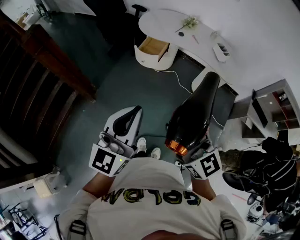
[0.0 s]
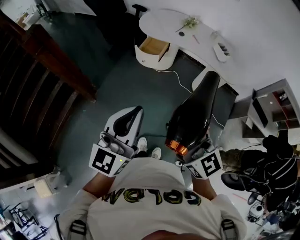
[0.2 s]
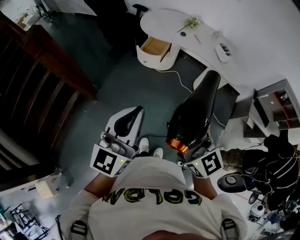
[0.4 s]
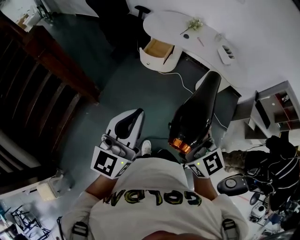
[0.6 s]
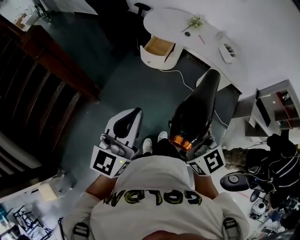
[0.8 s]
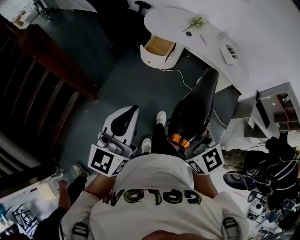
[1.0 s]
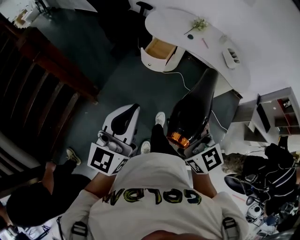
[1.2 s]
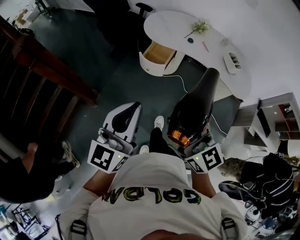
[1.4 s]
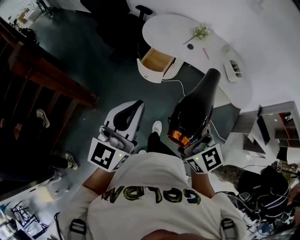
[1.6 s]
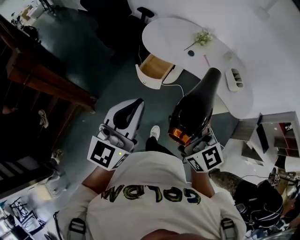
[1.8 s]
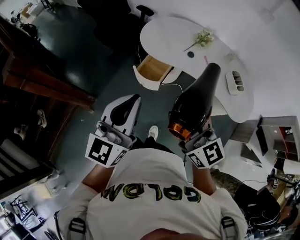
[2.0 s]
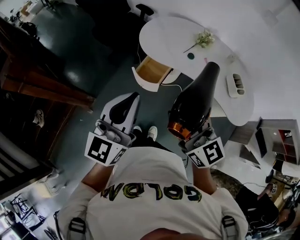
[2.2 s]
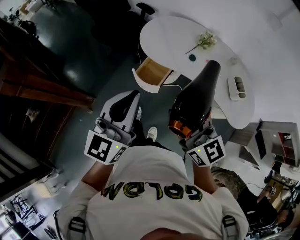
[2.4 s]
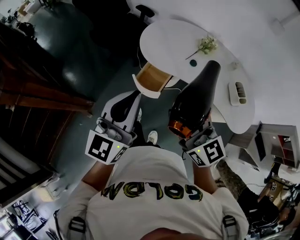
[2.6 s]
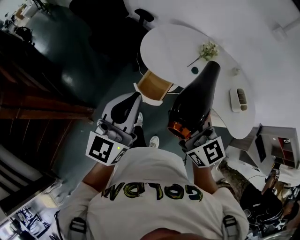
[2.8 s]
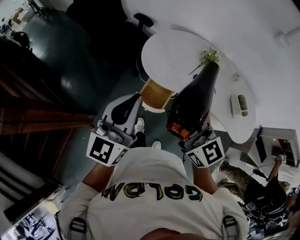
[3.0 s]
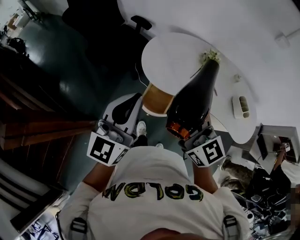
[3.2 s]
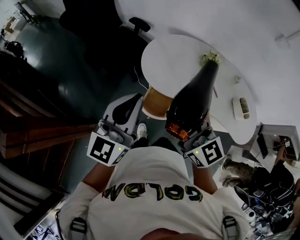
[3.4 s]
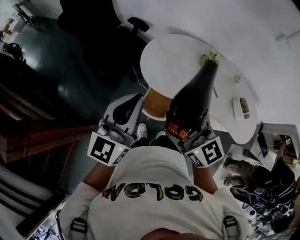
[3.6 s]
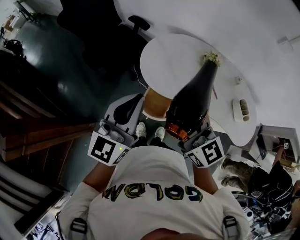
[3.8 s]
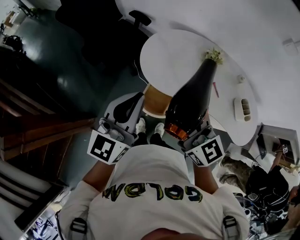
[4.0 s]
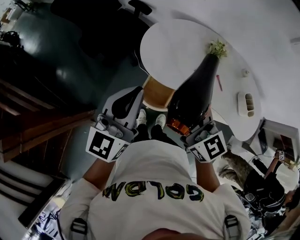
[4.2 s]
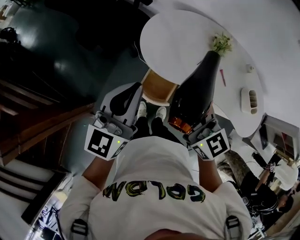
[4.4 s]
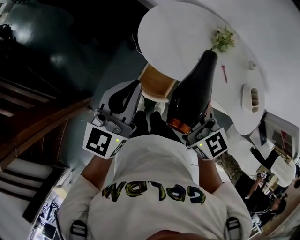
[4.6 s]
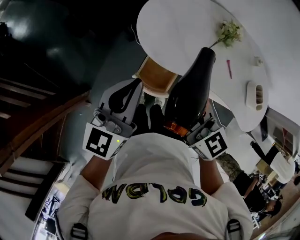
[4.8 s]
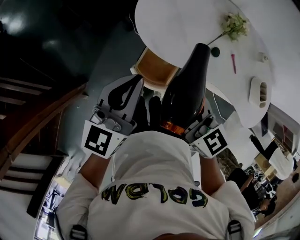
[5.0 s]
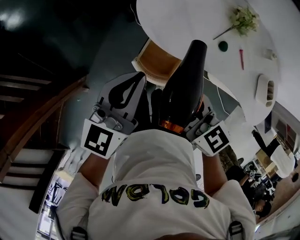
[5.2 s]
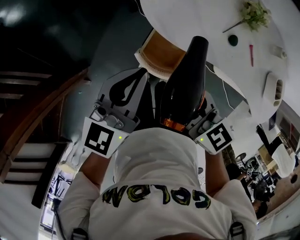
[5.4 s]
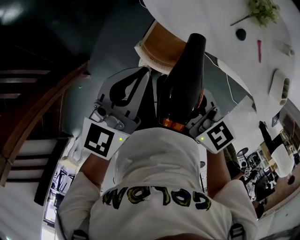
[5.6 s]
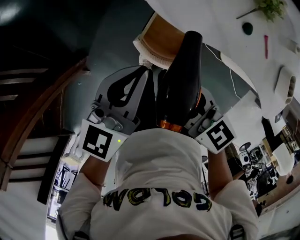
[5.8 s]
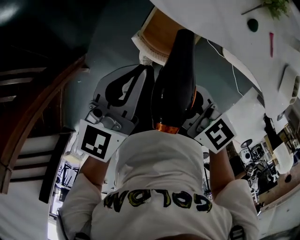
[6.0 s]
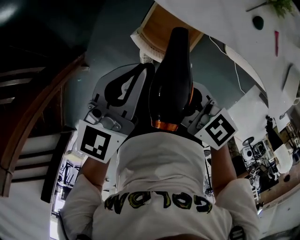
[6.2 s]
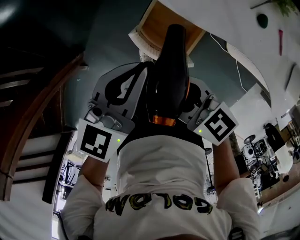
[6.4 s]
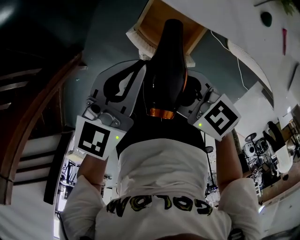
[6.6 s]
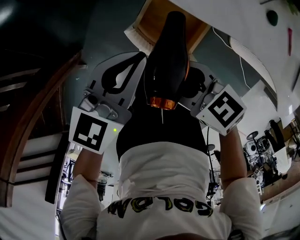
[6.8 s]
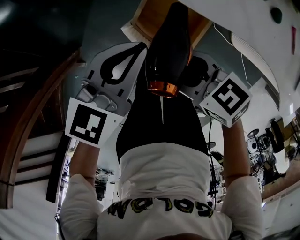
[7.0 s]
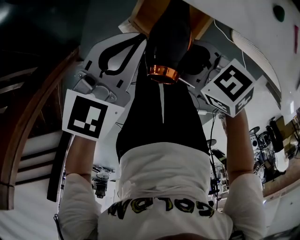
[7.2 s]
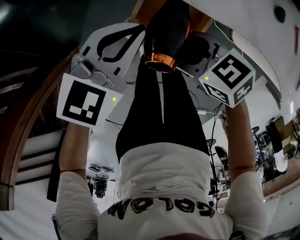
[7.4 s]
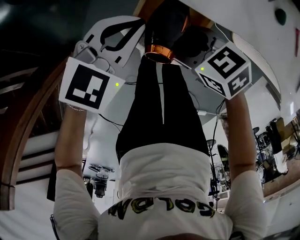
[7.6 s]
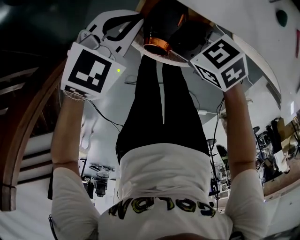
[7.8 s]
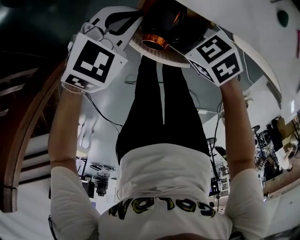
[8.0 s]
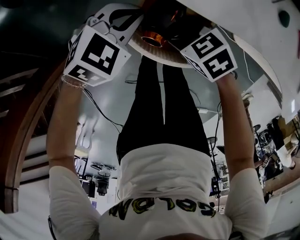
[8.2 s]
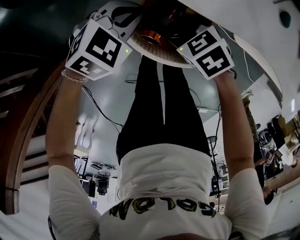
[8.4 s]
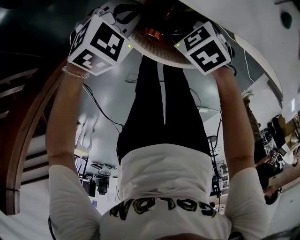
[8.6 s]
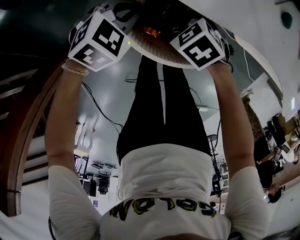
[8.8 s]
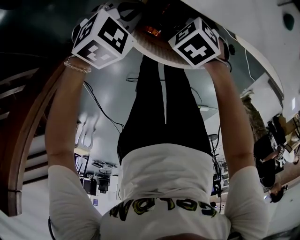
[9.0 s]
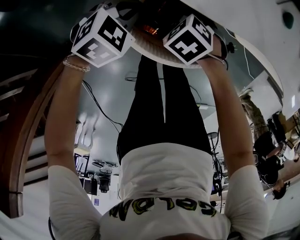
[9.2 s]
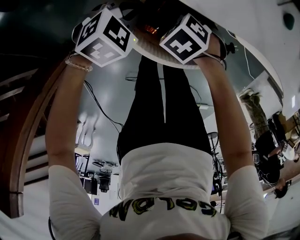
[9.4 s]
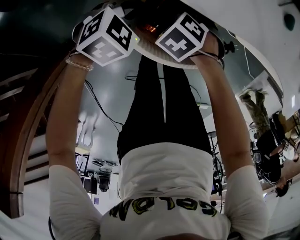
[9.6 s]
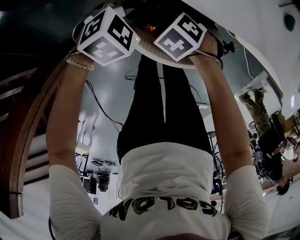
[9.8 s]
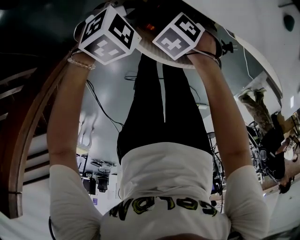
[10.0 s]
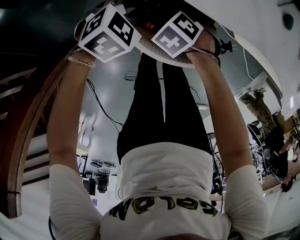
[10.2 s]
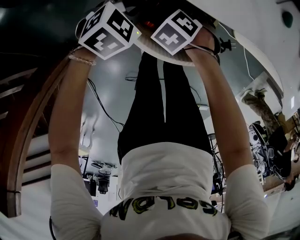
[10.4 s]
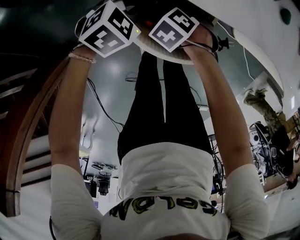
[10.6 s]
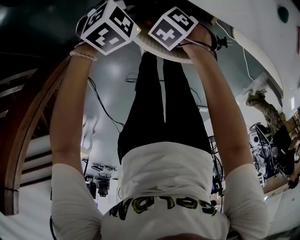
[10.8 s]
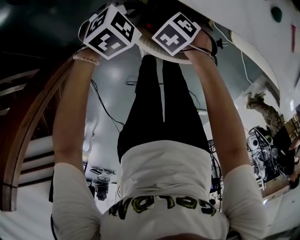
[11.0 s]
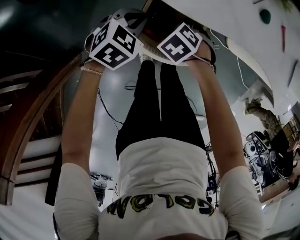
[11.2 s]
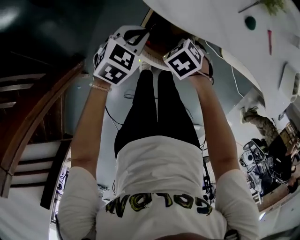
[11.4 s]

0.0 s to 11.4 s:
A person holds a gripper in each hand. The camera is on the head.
0.0 to 1.4 s: Both grippers travel together forward, roughly 15 cm.
1.4 to 2.8 s: Both grippers travel together forward, approximately 35 cm.
2.8 to 4.2 s: The two grippers go roughly 15 cm forward.
4.2 to 5.6 s: Both grippers travel together downward, approximately 25 cm. The right gripper changes its angle by approximately 30 degrees. The left gripper rotates approximately 20 degrees.
5.6 to 7.2 s: The grippers both shift downward by about 20 cm. The right gripper swivels roughly 20 degrees; the left gripper swivels about 30 degrees.
7.2 to 8.6 s: The grippers both shift downward by approximately 10 cm. The left gripper turns by approximately 30 degrees; the right gripper turns by approximately 30 degrees.
8.6 to 10.0 s: The right gripper is displaced downward by approximately 5 cm, and swivels approximately 20 degrees.
10.0 to 11.4 s: The two grippers go about 10 cm upward. The left gripper rotates some 20 degrees.

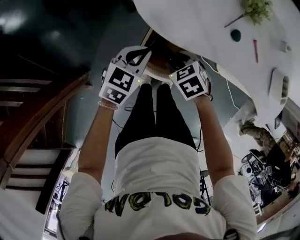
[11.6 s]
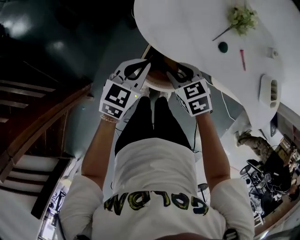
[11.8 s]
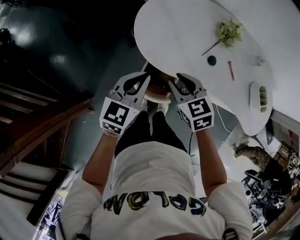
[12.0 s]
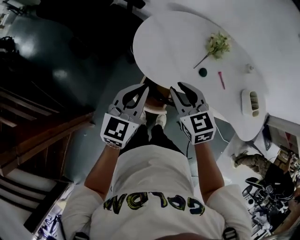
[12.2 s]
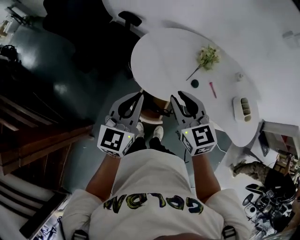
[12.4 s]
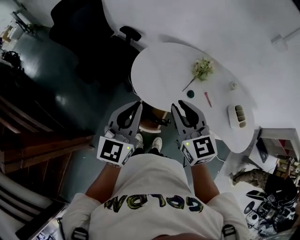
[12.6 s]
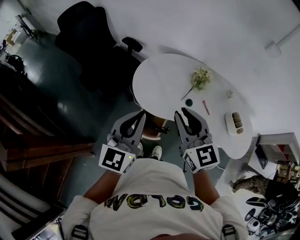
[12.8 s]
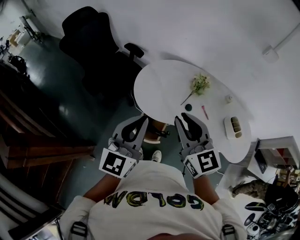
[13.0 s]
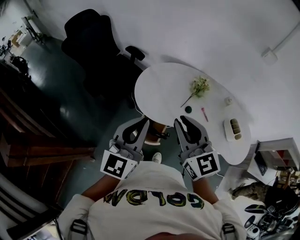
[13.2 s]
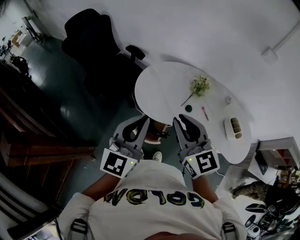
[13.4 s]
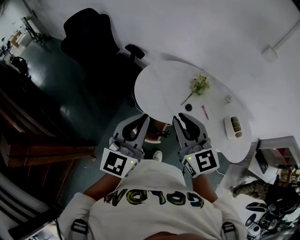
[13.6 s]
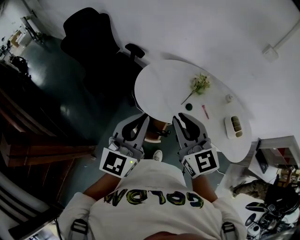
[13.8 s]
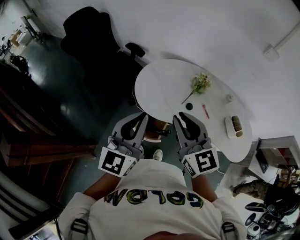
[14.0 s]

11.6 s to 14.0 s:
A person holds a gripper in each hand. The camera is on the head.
11.6 to 12.8 s: The two grippers go roughly 40 cm upward. The left gripper angles its fingers upward, by about 40 degrees. Meanwhile the right gripper tips its fingers upward by about 60 degrees, and closes up.
12.8 to 14.0 s: The grippers move only a little.

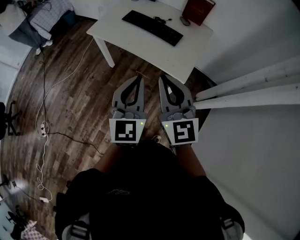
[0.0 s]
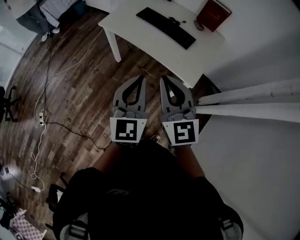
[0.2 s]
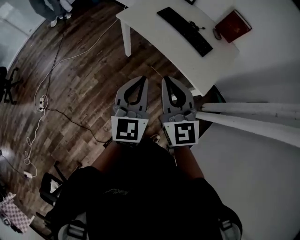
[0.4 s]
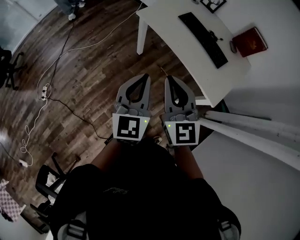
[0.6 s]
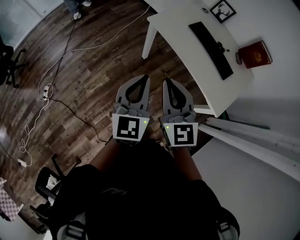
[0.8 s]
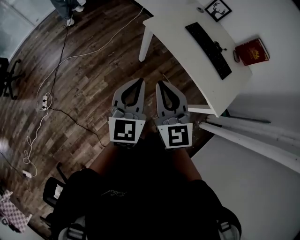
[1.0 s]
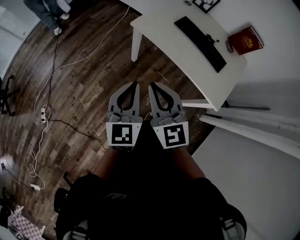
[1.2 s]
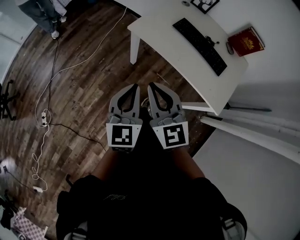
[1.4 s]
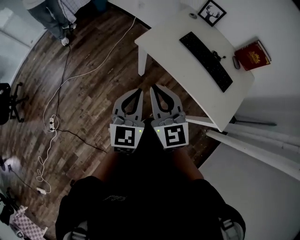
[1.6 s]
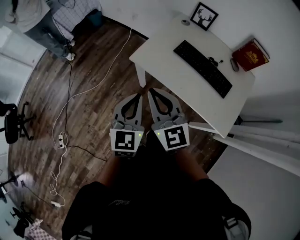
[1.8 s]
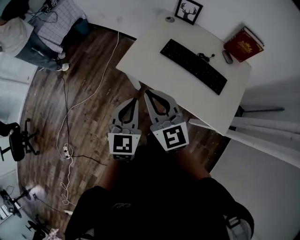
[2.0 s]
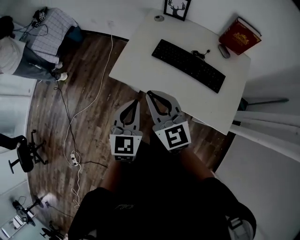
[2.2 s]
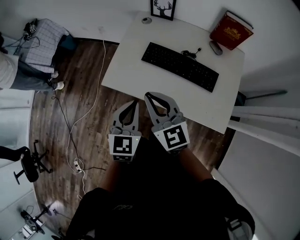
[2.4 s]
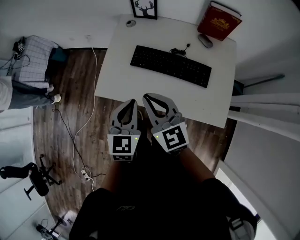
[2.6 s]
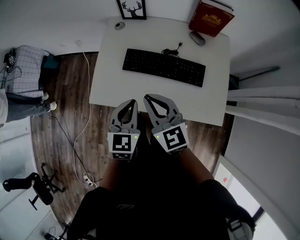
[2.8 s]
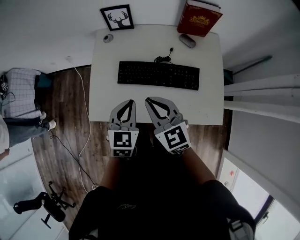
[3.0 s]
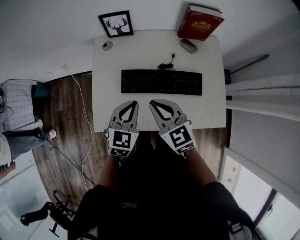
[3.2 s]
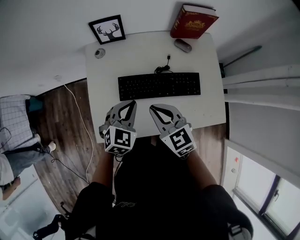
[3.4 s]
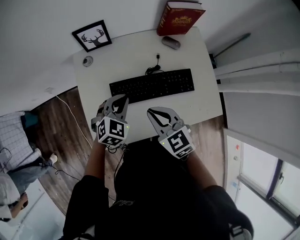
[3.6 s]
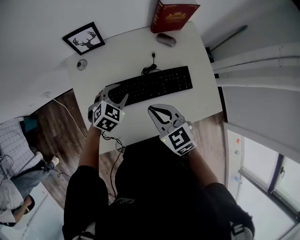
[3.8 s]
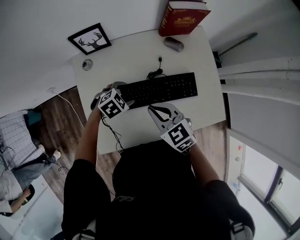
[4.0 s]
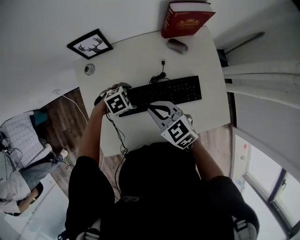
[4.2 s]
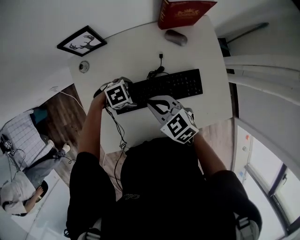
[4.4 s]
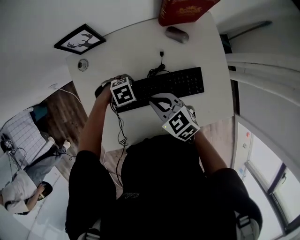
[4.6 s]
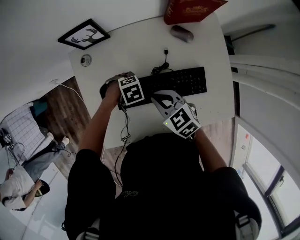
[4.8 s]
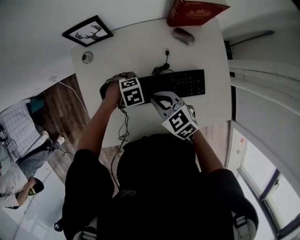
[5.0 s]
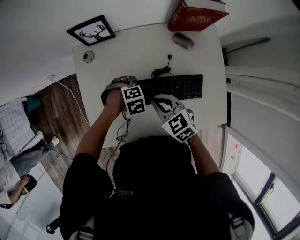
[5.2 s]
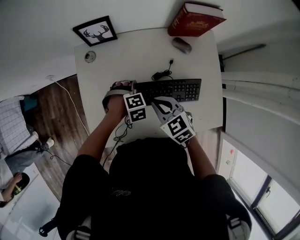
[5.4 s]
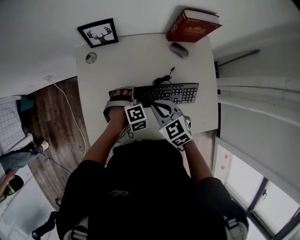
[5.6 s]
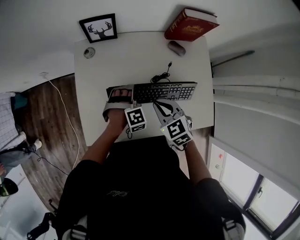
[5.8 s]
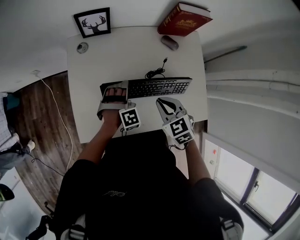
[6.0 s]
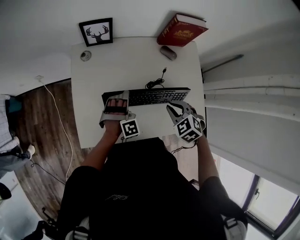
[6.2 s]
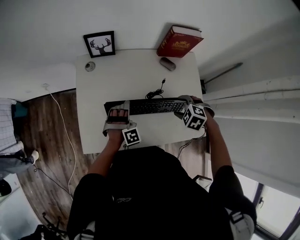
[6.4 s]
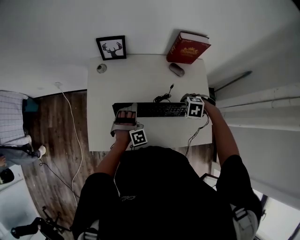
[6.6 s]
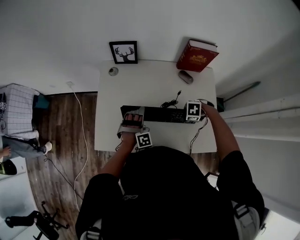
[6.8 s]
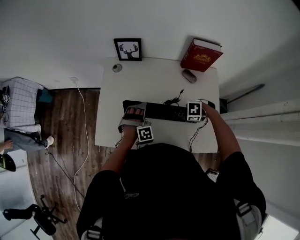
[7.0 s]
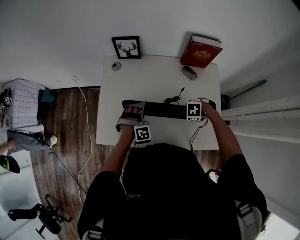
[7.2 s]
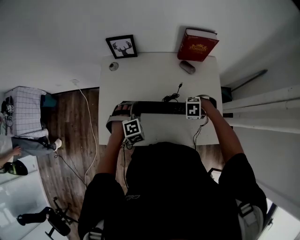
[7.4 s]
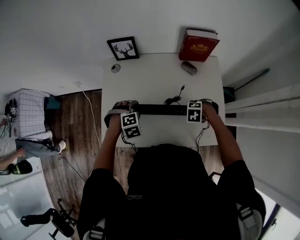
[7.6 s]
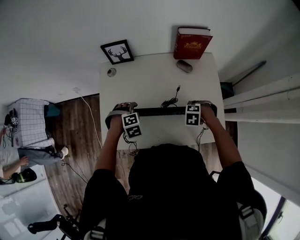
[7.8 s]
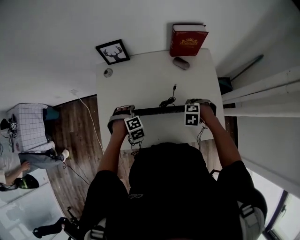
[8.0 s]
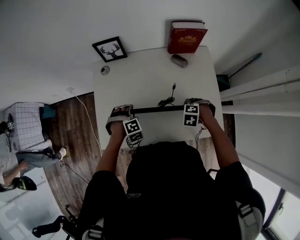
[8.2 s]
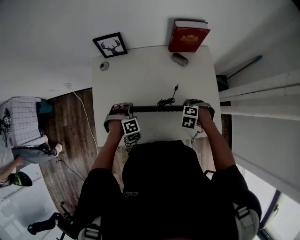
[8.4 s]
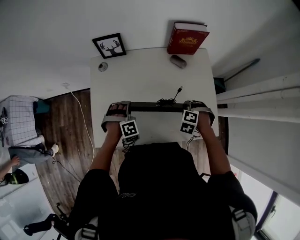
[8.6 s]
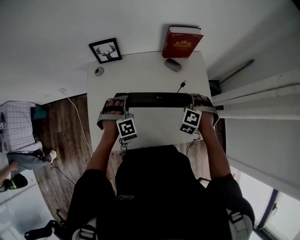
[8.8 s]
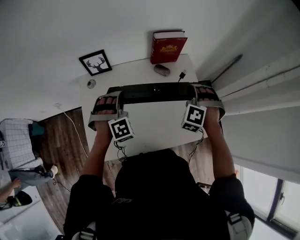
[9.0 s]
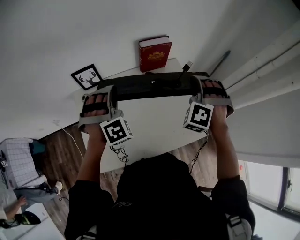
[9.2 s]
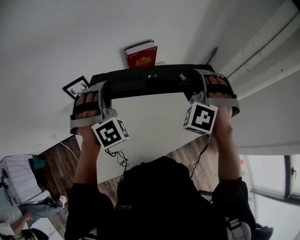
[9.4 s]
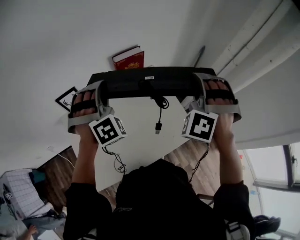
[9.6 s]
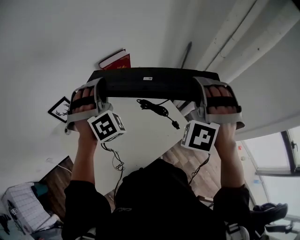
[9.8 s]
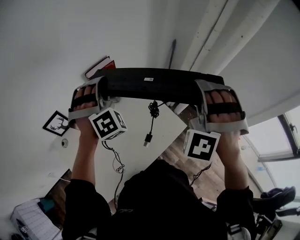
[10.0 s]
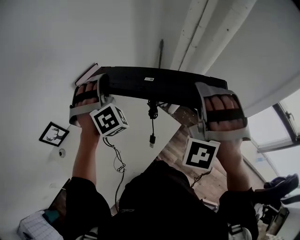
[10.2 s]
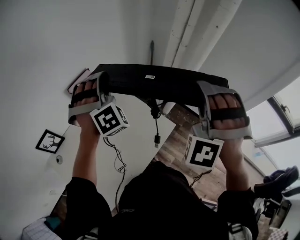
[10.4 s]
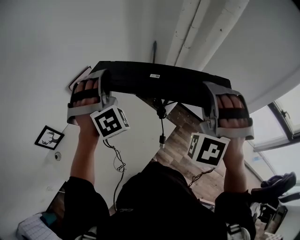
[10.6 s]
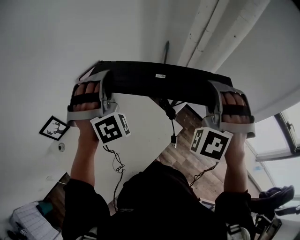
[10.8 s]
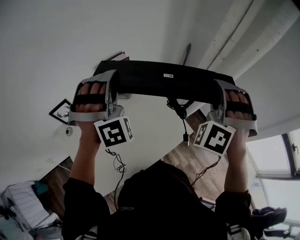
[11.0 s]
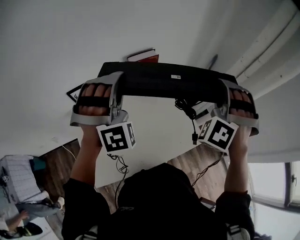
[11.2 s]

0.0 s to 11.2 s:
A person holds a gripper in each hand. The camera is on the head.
0.0 to 1.6 s: Both grippers move forward and to the left, about 35 cm.
1.6 to 3.2 s: The right gripper ends up about 35 cm from where it was, and swivels roughly 30 degrees; the left gripper ends up about 40 cm from where it was, and rotates approximately 50 degrees.
3.2 to 4.8 s: The right gripper moves downward, approximately 10 cm, and turns by about 20 degrees. Meanwhile the left gripper heads downward, covering approximately 20 cm, tips its fingers downward by roughly 40 degrees, and opens its fingers.
4.8 to 6.4 s: The left gripper travels upward by some 5 cm, and tilts its fingers approximately 30 degrees upward, while the right gripper shifts by roughly 15 cm, points its fingers some 30 degrees further downward, and opens up.
6.4 to 8.0 s: The left gripper ends up some 5 cm from where it was, and tilts its fingers about 30 degrees downward. The right gripper is displaced downward by about 10 cm, and closes its fingers.
8.0 to 9.6 s: Both grippers move upward, roughly 40 cm. The right gripper angles its fingers upward, by approximately 70 degrees. Meanwhile the left gripper points its fingers some 50 degrees further upward, and closes its fingers.
9.6 to 11.2 s: The right gripper goes to the right and returns, some 15 cm each way. Meanwhile the left gripper heads upward, covering about 5 cm, and goes to the right and returns, some 20 cm each way.
